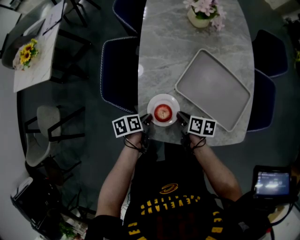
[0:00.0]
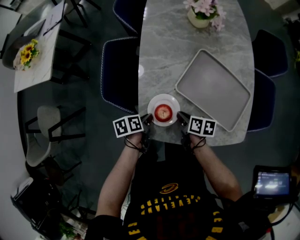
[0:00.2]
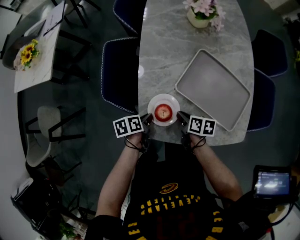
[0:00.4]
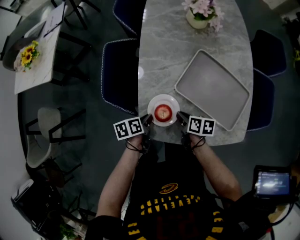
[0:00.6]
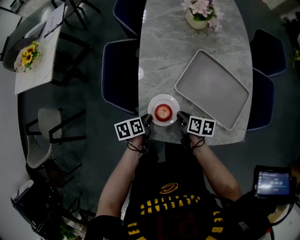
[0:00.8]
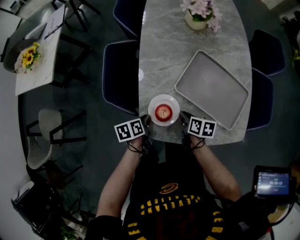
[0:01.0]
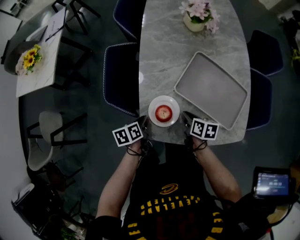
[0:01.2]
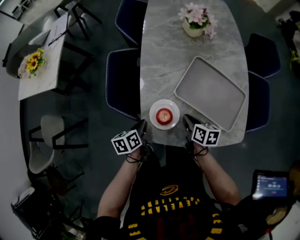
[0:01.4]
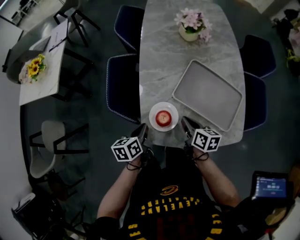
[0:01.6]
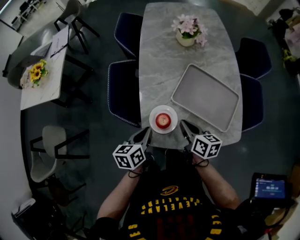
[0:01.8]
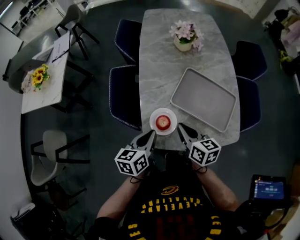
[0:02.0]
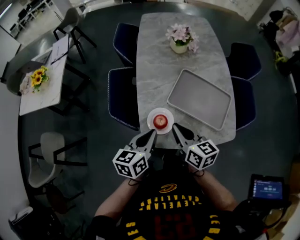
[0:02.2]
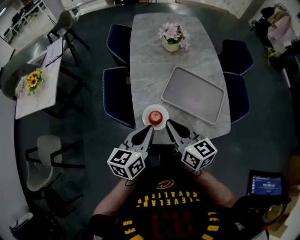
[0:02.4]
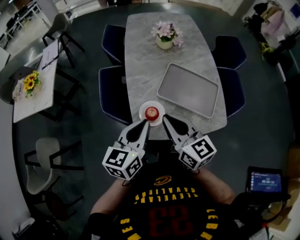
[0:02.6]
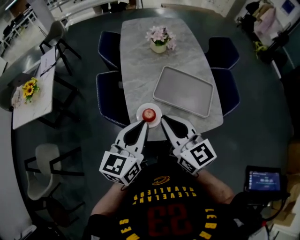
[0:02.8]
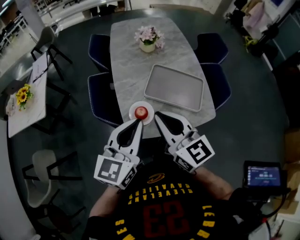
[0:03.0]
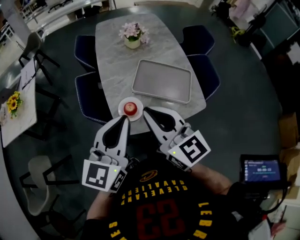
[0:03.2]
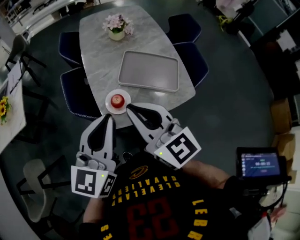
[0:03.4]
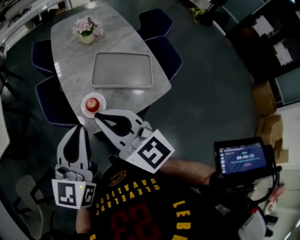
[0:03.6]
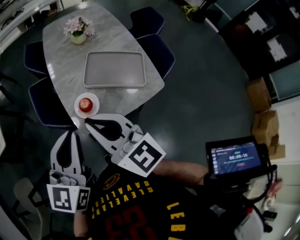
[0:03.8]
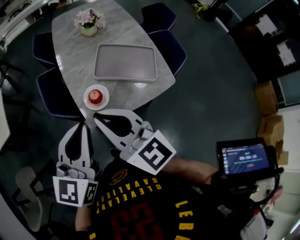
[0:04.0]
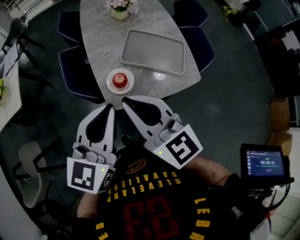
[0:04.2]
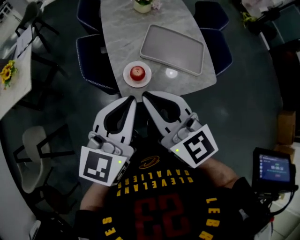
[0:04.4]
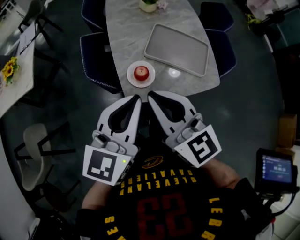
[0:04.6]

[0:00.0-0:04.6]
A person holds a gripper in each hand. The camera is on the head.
0:00.0 to 0:01.6: Both grippers move upward, some 10 cm. The right gripper rotates about 20 degrees, while the left gripper rotates roughly 30 degrees.
0:01.6 to 0:03.0: Both grippers move upward, about 30 cm. The left gripper tips its fingers upward by approximately 30 degrees. The right gripper points its fingers about 30 degrees further upward.
0:03.0 to 0:04.6: The right gripper is displaced backward and to the left by about 10 cm, while the left gripper goes approximately 5 cm backward.

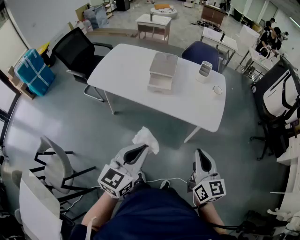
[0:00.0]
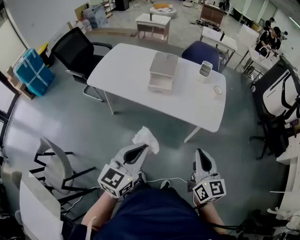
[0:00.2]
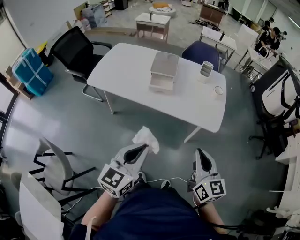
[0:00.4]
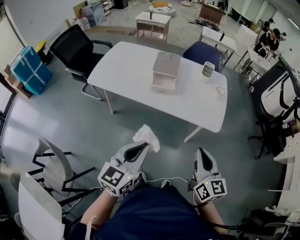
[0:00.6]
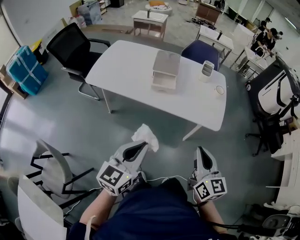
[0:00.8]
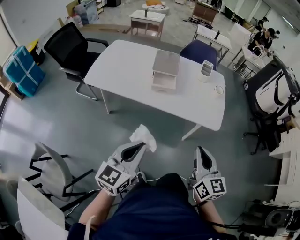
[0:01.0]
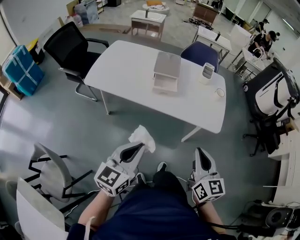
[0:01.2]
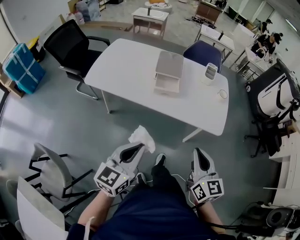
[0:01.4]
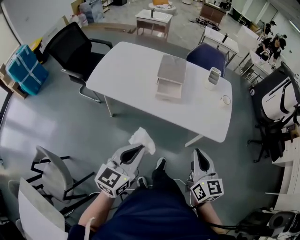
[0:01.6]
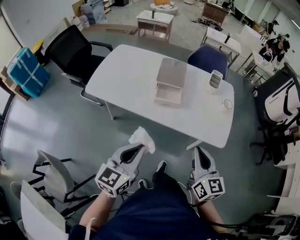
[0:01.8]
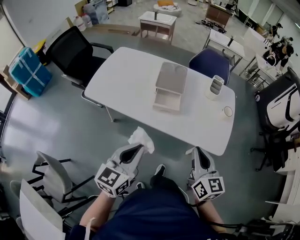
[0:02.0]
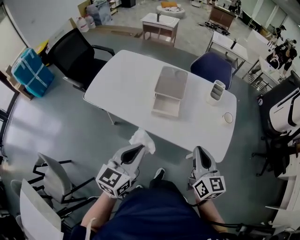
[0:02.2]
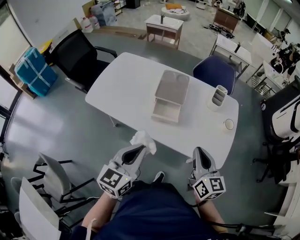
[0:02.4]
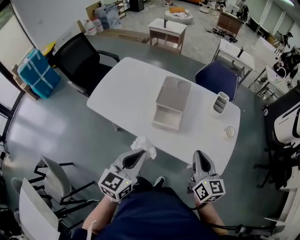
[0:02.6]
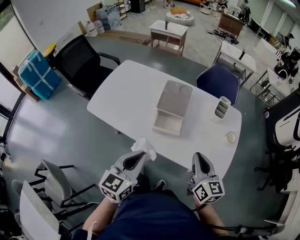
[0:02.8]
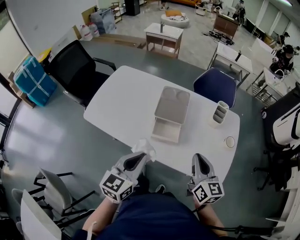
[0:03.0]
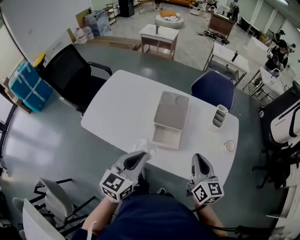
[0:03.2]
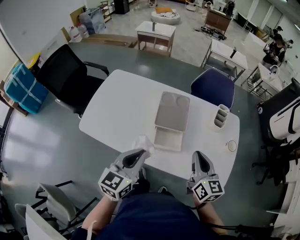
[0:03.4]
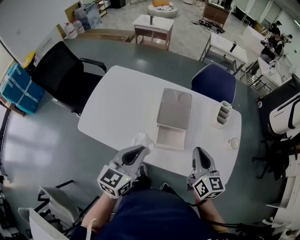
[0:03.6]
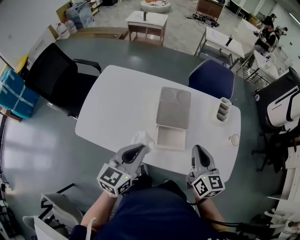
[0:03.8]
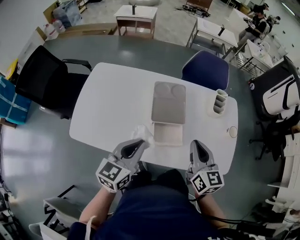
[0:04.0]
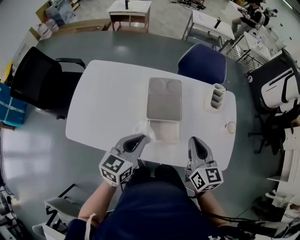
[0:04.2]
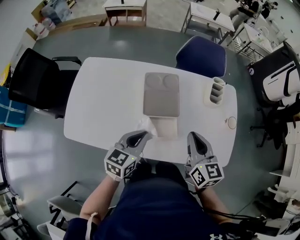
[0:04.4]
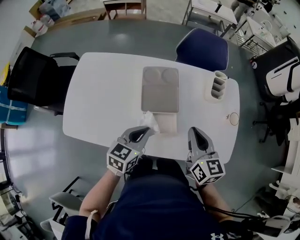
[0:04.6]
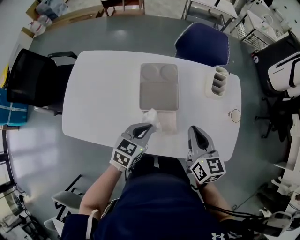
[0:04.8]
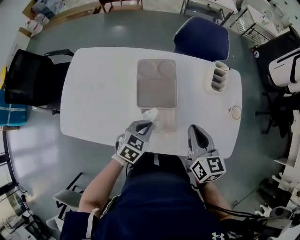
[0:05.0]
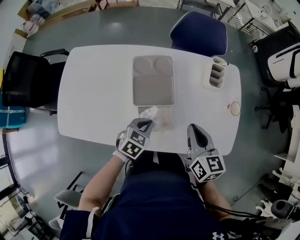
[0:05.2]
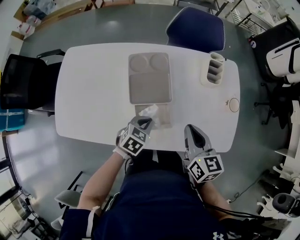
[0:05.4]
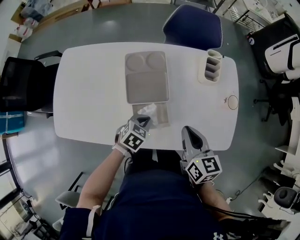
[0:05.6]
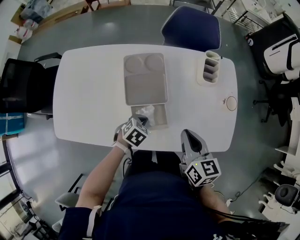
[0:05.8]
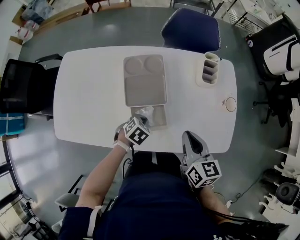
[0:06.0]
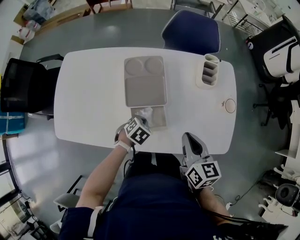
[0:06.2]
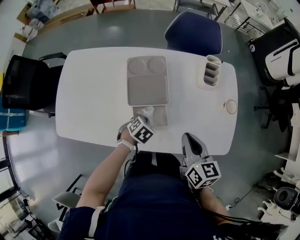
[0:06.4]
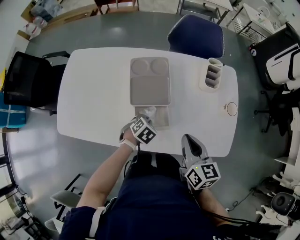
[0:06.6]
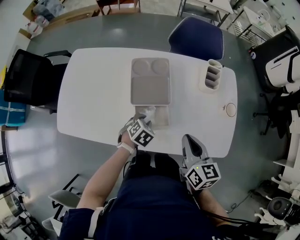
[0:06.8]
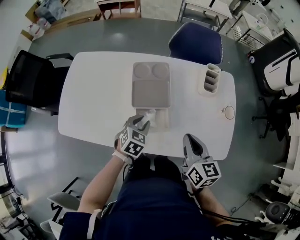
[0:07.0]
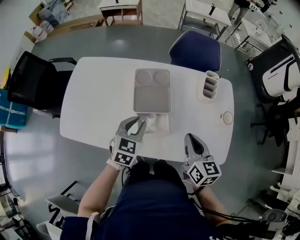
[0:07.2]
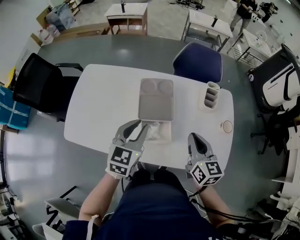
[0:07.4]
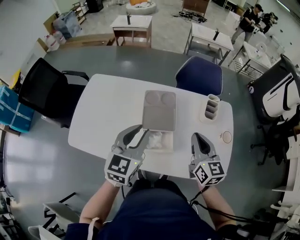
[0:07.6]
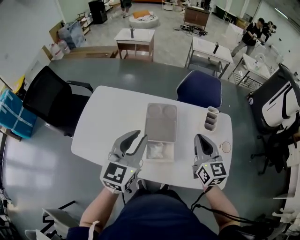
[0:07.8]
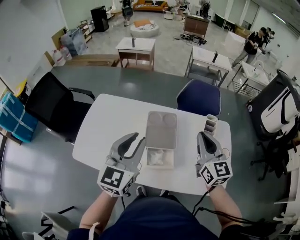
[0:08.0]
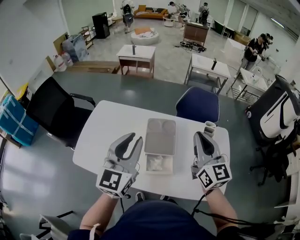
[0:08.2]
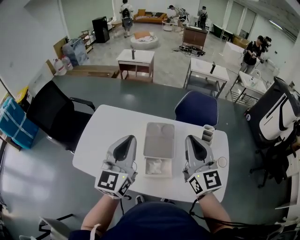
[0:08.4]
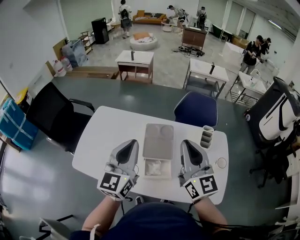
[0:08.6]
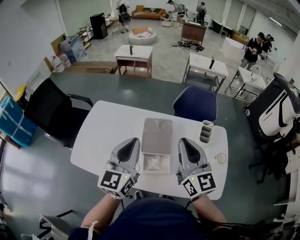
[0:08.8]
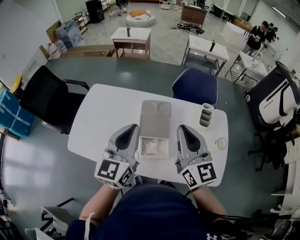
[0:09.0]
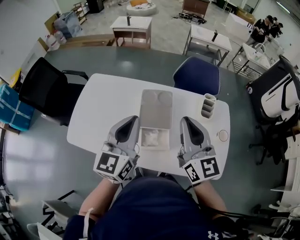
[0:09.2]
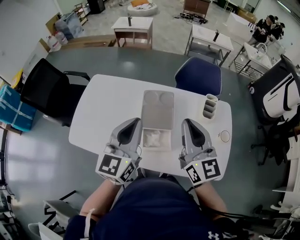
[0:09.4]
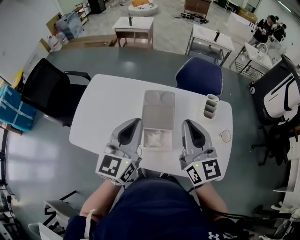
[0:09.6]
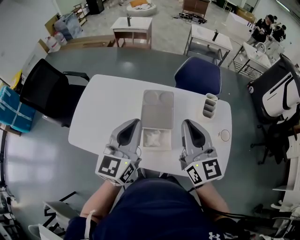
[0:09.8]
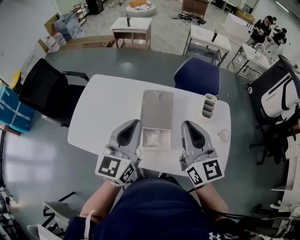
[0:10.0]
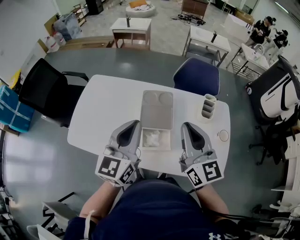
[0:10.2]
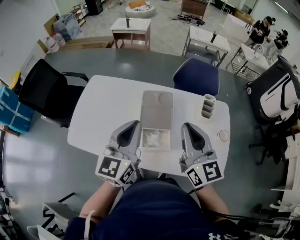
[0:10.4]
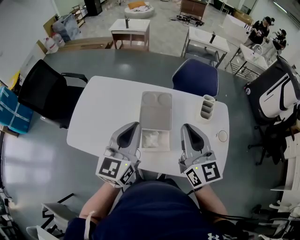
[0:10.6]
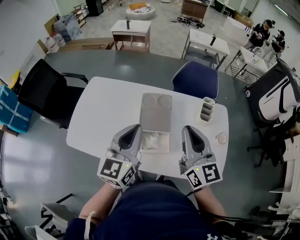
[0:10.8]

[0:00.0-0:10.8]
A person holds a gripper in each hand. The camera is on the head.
0:00.0 to 0:01.6: The grippers both shift to the left and forward by about 15 cm.
0:01.6 to 0:03.0: The two grippers go some 25 cm forward.
0:03.0 to 0:04.6: The right gripper shifts roughly 15 cm forward and to the left. The left gripper travels forward and downward by roughly 20 cm, and rotates some 30 degrees.
0:04.6 to 0:06.2: The right gripper heads downward and to the right, covering some 5 cm. The left gripper moves downward, roughly 20 cm, and tips its fingers downward by some 40 degrees.
0:06.2 to 0:07.8: The right gripper heads upward and forward, covering roughly 15 cm, and turns by some 30 degrees. Meanwhile the left gripper shifts roughly 40 cm upward, points its fingers approximately 60 degrees further upward, and opens.
0:07.8 to 0:09.2: The left gripper closes, while the right gripper shifts roughly 10 cm upward and to the left.
0:09.2 to 0:10.8: The grippers make only small movements.

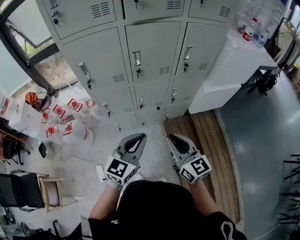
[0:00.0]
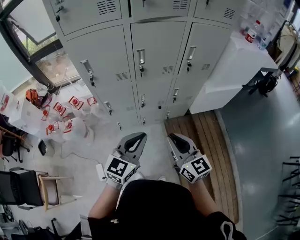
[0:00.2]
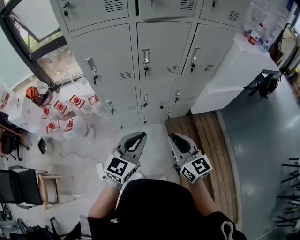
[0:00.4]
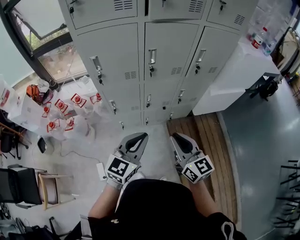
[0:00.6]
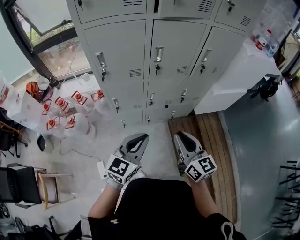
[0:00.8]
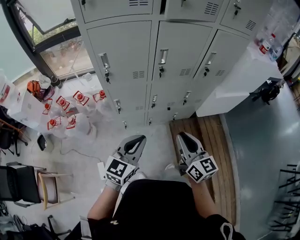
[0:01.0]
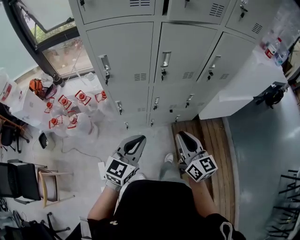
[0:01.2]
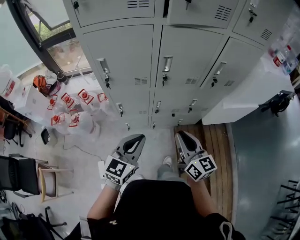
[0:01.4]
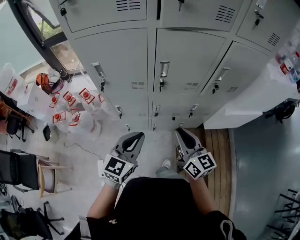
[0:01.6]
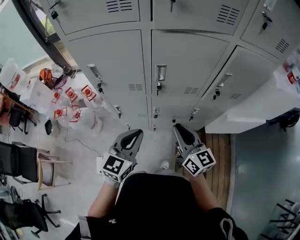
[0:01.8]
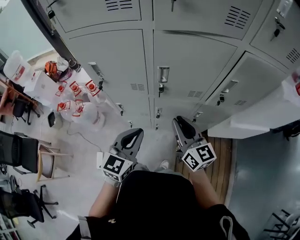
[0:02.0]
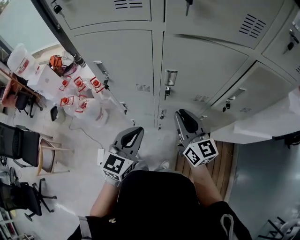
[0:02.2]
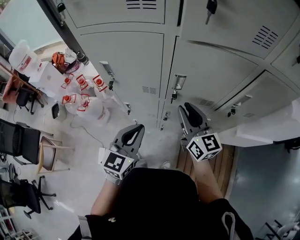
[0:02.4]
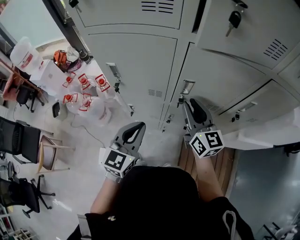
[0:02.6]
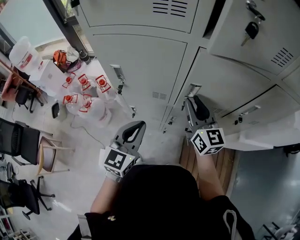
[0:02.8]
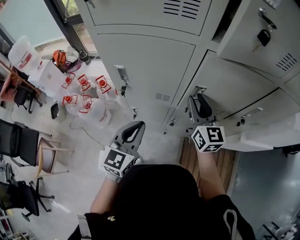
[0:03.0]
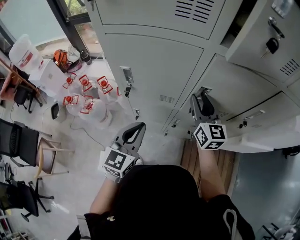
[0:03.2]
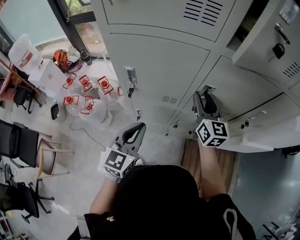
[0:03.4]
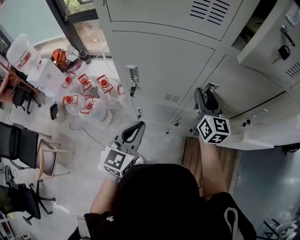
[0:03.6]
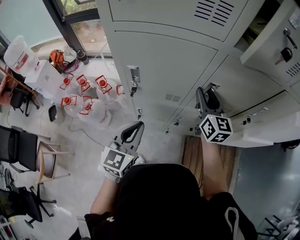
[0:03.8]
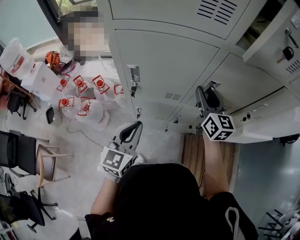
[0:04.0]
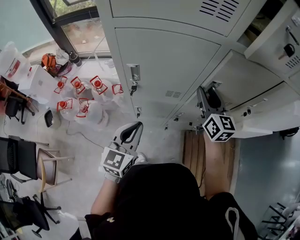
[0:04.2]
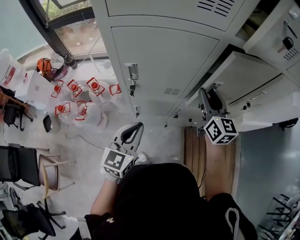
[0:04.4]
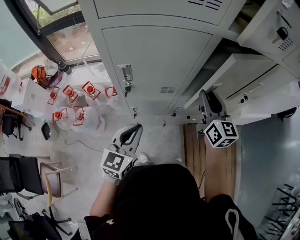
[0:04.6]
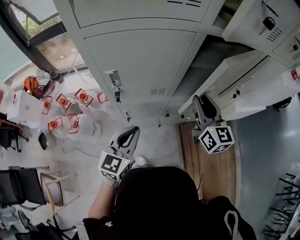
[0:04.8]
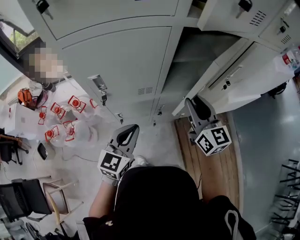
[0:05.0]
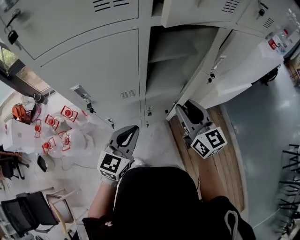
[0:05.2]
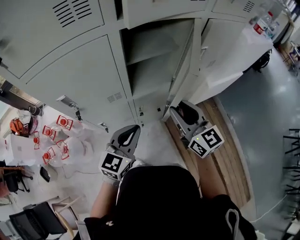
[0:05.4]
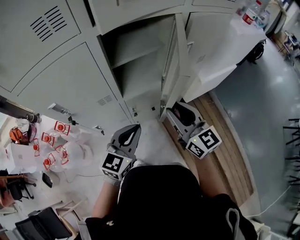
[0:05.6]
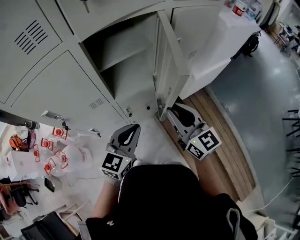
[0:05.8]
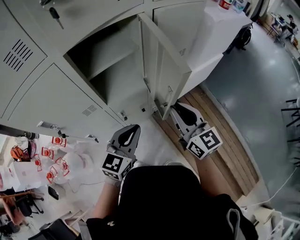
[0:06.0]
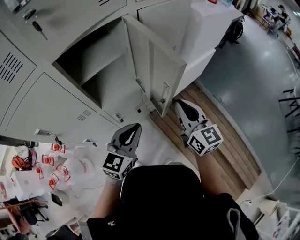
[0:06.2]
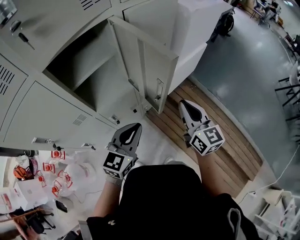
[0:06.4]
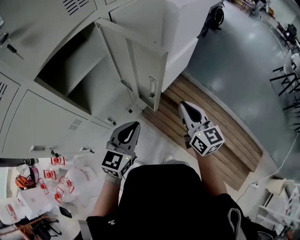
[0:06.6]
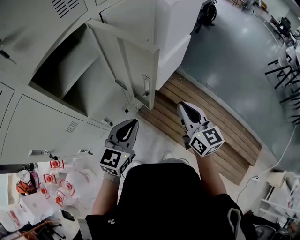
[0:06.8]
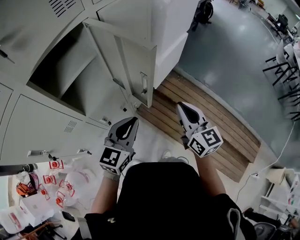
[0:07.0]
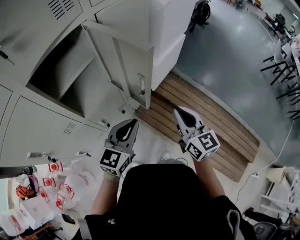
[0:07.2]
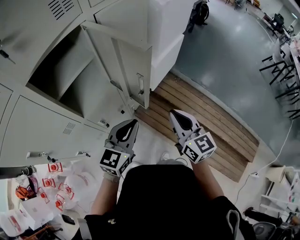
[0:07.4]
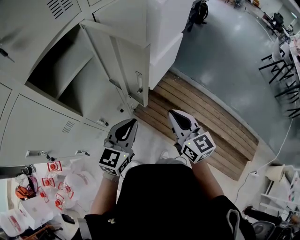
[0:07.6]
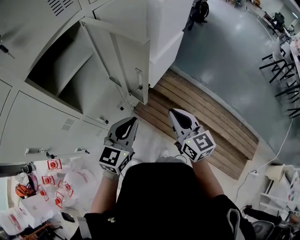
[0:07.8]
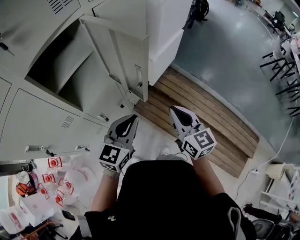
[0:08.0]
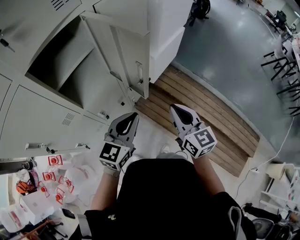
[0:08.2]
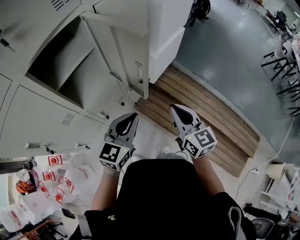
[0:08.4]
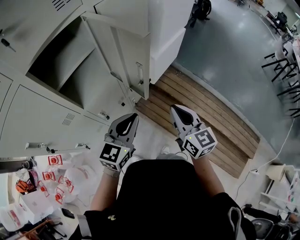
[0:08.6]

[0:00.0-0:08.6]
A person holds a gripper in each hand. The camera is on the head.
0:00.0 to 0:01.4: The right gripper heads forward and to the left, covering approximately 10 cm. The left gripper goes about 10 cm to the left and forward.
0:01.4 to 0:02.8: The right gripper goes roughly 25 cm forward; the left gripper heads forward, covering about 15 cm.
0:02.8 to 0:04.4: The left gripper heads to the left, covering some 10 cm.
0:04.4 to 0:05.8: The right gripper moves to the right and backward, approximately 25 cm. The left gripper heads to the right, covering approximately 25 cm, and turns by some 30 degrees.
0:05.8 to 0:07.2: The left gripper ends up roughly 10 cm from where it was, and swivels some 20 degrees; the right gripper ends up approximately 15 cm from where it was, and swivels roughly 30 degrees.
0:07.2 to 0:08.6: The grippers stay close to where they were, moving slightly.
